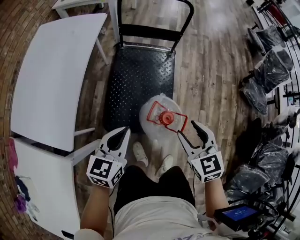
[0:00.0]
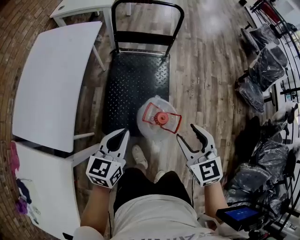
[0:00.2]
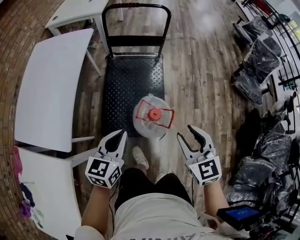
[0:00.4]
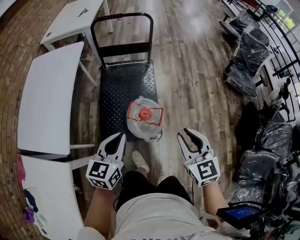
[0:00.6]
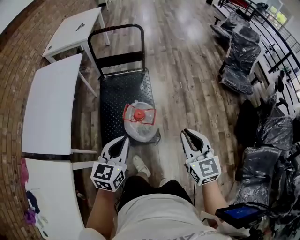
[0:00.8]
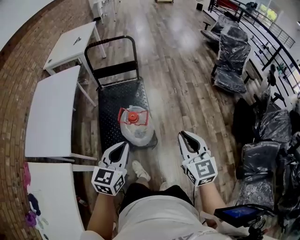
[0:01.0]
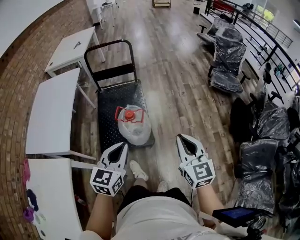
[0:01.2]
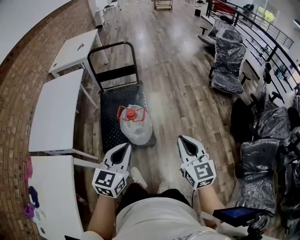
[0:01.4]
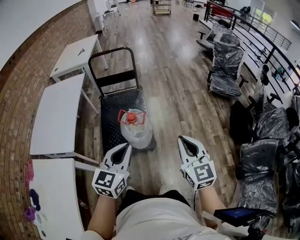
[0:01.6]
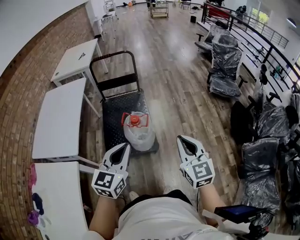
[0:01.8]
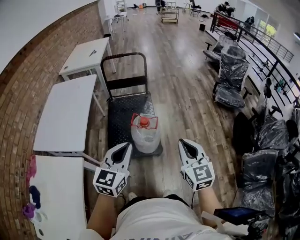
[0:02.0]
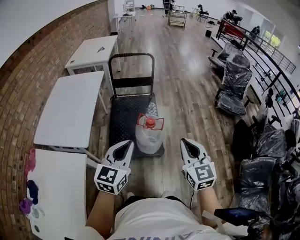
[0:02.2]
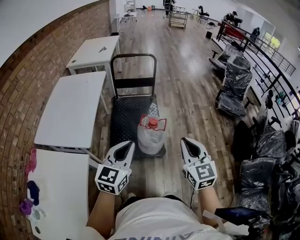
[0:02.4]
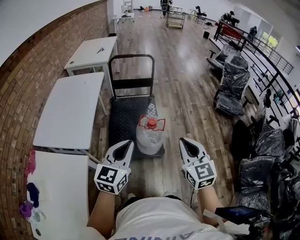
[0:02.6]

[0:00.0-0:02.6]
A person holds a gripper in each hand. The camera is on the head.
0.0 to 1.2 s: The two grippers go about 30 cm backward, to the right and upward. The right gripper swivels roughly 30 degrees, and closes its fingers.
1.2 to 2.6 s: The right gripper travels to the left by roughly 15 cm. The left gripper heads to the left and upward, covering roughly 15 cm.

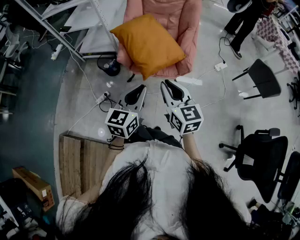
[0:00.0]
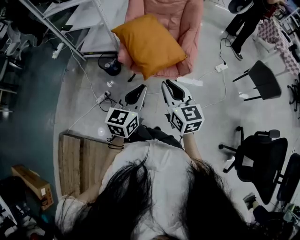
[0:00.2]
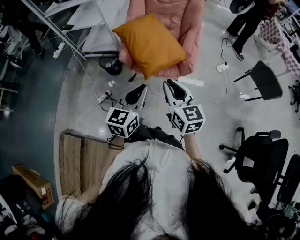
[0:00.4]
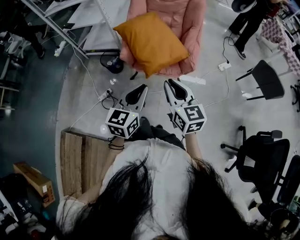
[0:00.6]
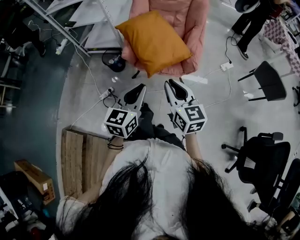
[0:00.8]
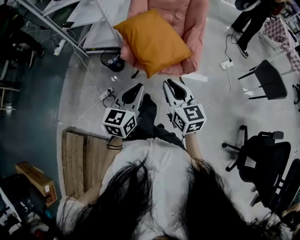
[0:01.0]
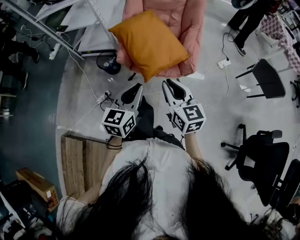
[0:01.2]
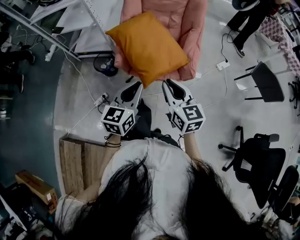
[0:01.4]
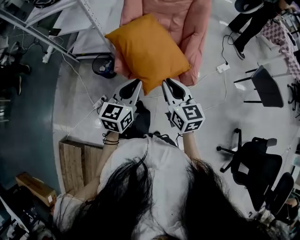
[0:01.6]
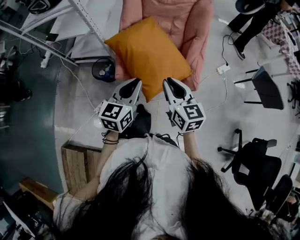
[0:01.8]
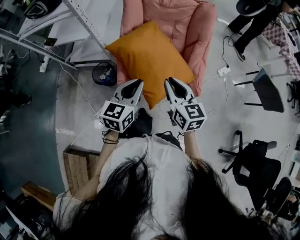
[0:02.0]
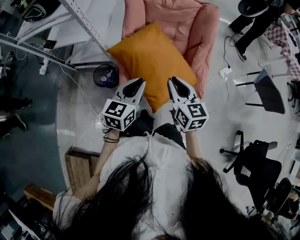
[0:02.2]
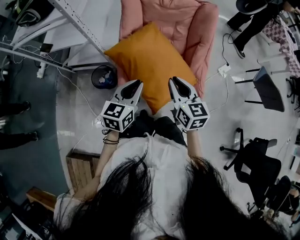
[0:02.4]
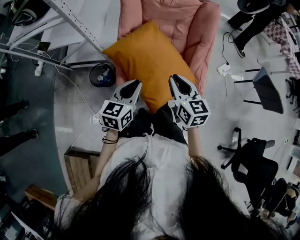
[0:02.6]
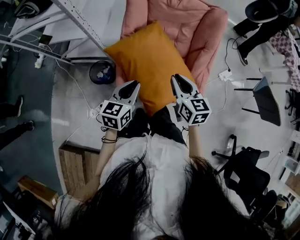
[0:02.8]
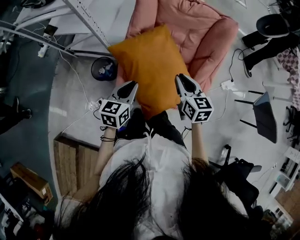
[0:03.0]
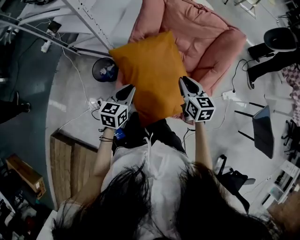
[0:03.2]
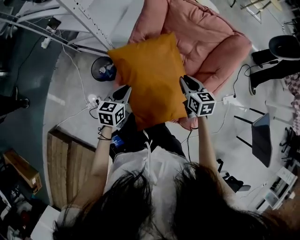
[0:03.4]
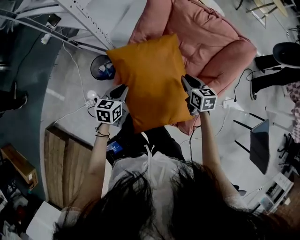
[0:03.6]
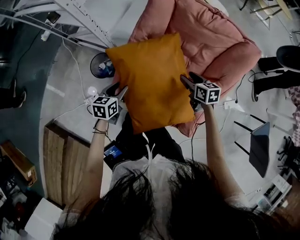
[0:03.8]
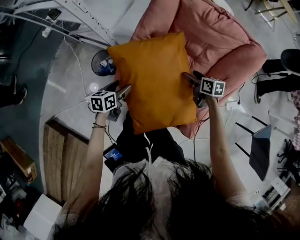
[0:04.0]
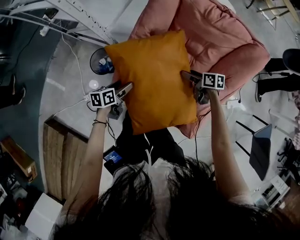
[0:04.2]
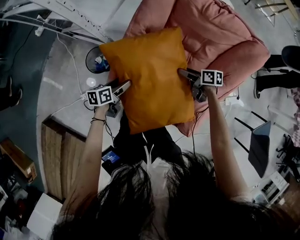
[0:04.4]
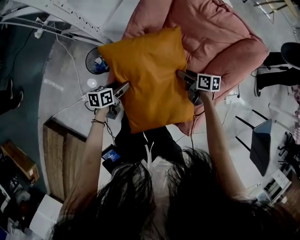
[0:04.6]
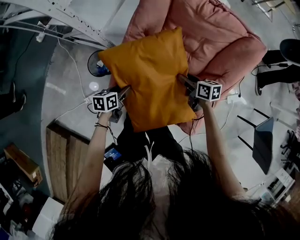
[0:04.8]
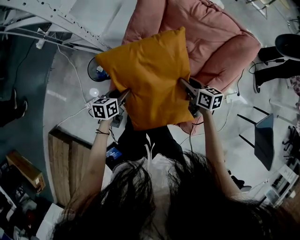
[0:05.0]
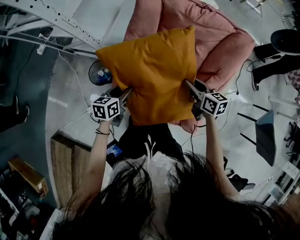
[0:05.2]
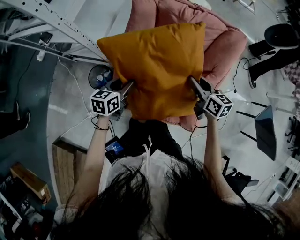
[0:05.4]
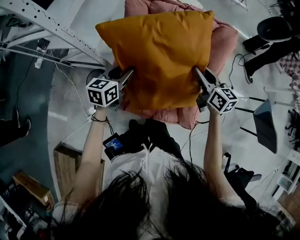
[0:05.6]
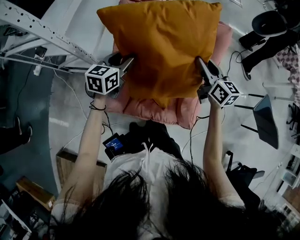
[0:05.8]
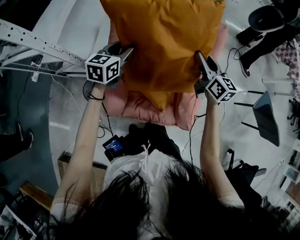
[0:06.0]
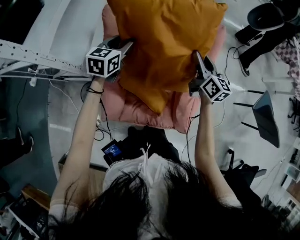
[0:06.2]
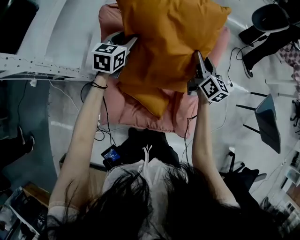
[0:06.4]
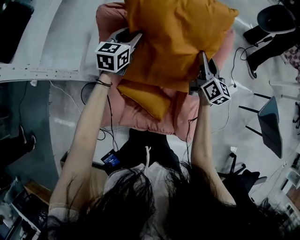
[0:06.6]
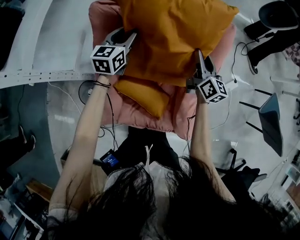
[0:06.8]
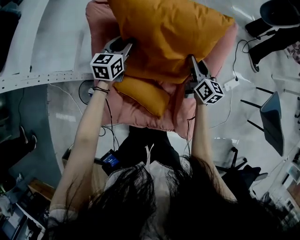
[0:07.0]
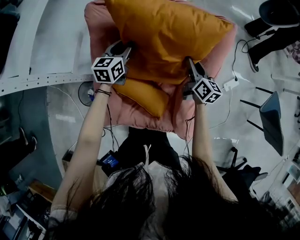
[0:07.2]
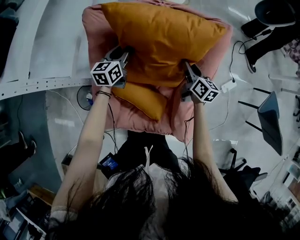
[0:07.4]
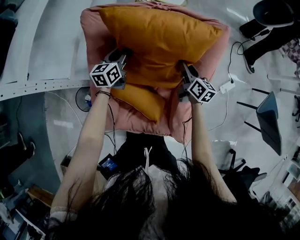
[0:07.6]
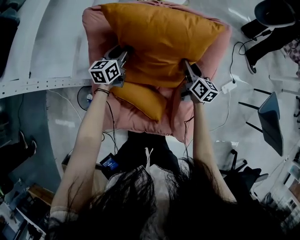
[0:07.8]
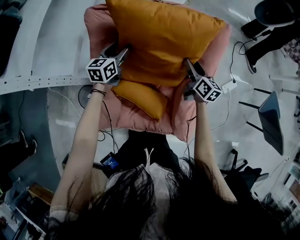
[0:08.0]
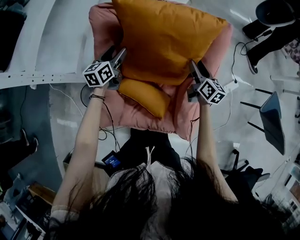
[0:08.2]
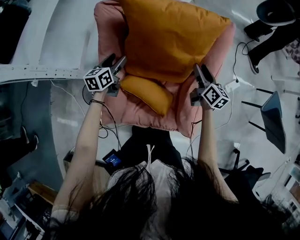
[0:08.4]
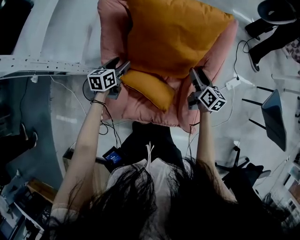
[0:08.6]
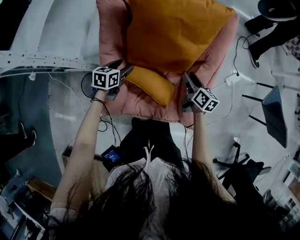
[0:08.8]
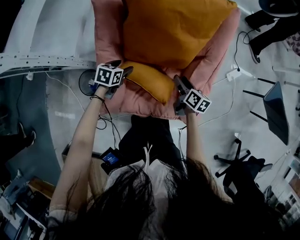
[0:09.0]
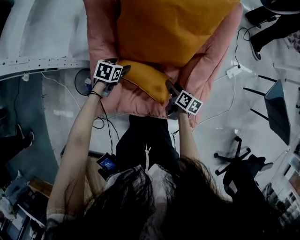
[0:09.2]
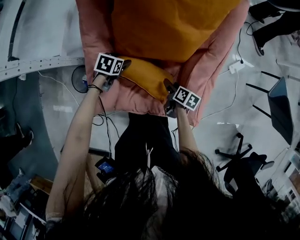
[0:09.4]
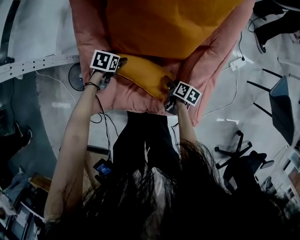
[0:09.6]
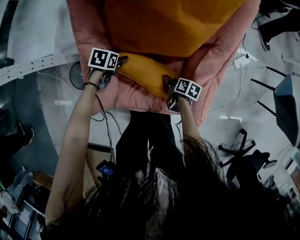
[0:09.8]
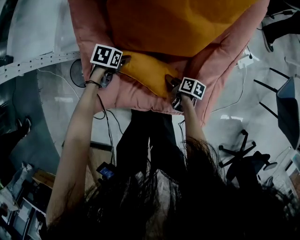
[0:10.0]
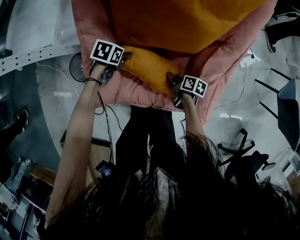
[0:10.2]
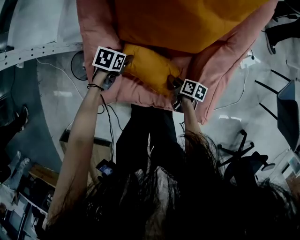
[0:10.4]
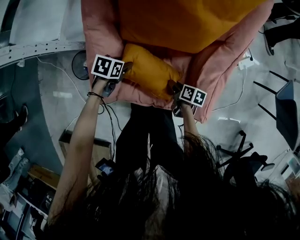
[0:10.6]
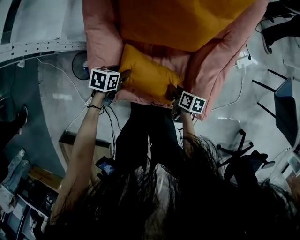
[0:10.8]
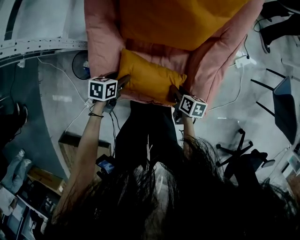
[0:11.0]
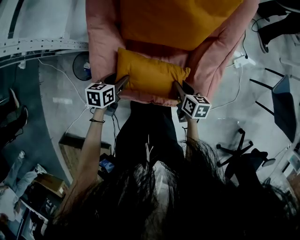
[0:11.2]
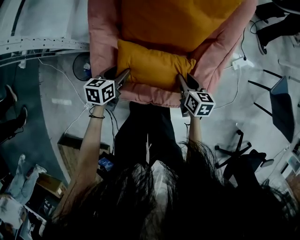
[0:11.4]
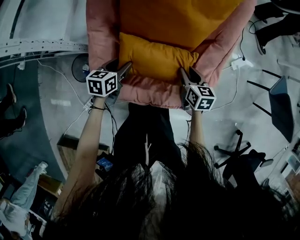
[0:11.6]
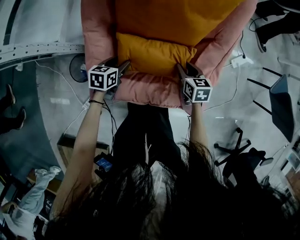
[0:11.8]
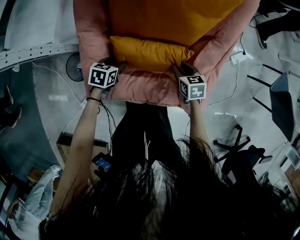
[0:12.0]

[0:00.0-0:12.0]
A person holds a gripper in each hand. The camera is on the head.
0.0 to 1.6 s: Both grippers move forward, about 15 cm.
1.6 to 3.0 s: The right gripper shifts roughly 25 cm forward, while the left gripper travels forward and downward by about 20 cm.
3.0 to 4.4 s: The right gripper goes some 30 cm downward and forward, changes its angle by some 50 degrees, and opens up. Meanwhile the left gripper heads downward, covering about 25 cm, rotates about 40 degrees, and opens its fingers.
4.4 to 6.0 s: The two grippers go approximately 30 cm upward. The left gripper rotates around the line of its fingers by approximately 50 degrees, clockwise from behind, and closes its fingers. Meanwhile the right gripper rotates some 60 degrees, and closes.
6.0 to 7.6 s: The left gripper goes approximately 20 cm downward and forward. Meanwhile the right gripper shifts approximately 20 cm downward, and turns by about 20 degrees.
7.6 to 9.0 s: Both grippers travel together backward and downward, roughly 20 cm. The right gripper opens its fingers; the left gripper tilts its fingers about 30 degrees downward, and opens its fingers.
9.0 to 10.4 s: The right gripper moves downward, approximately 20 cm, and changes its angle by some 30 degrees. Meanwhile the left gripper shifts approximately 10 cm downward.
10.4 to 12.0 s: The left gripper travels upward and back again, about 10 cm each way, while the right gripper is displaced upward and forward by about 10 cm, and twists roughly 50 degrees counterclockwise, seen from behind.

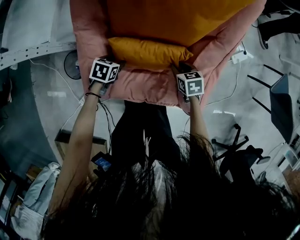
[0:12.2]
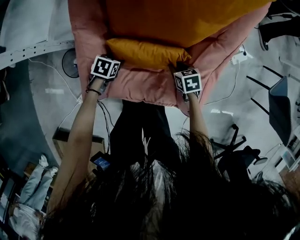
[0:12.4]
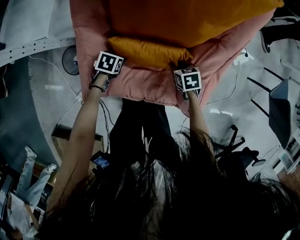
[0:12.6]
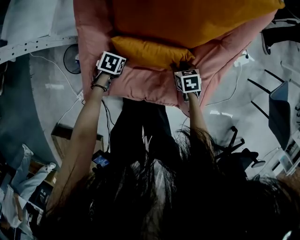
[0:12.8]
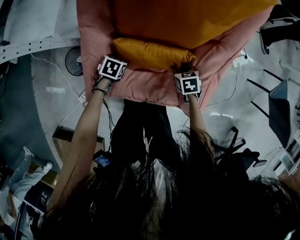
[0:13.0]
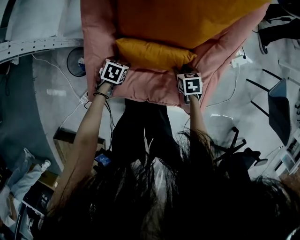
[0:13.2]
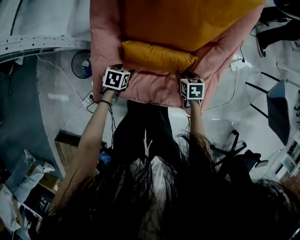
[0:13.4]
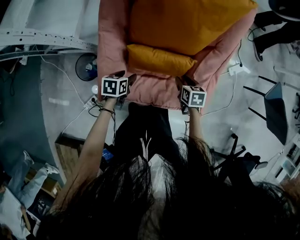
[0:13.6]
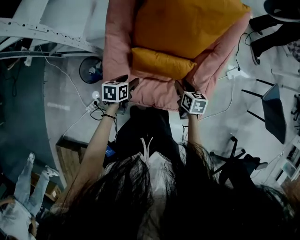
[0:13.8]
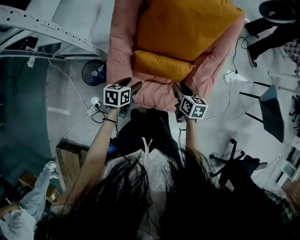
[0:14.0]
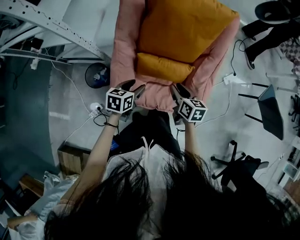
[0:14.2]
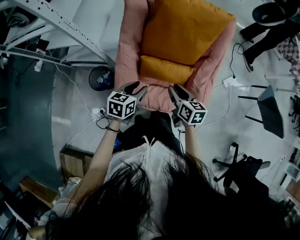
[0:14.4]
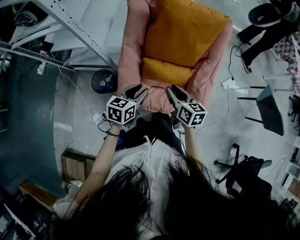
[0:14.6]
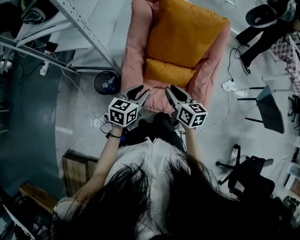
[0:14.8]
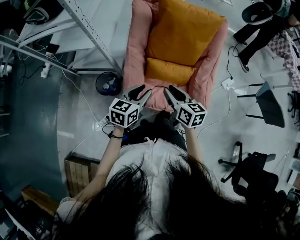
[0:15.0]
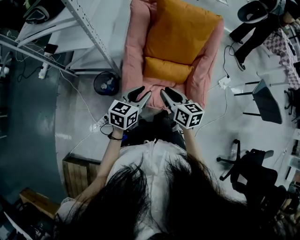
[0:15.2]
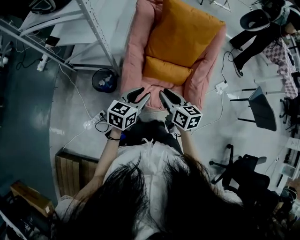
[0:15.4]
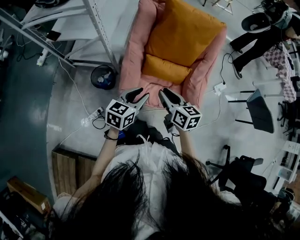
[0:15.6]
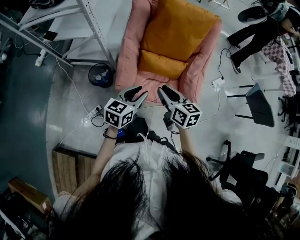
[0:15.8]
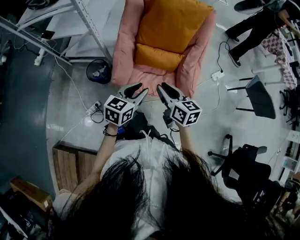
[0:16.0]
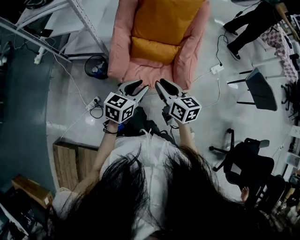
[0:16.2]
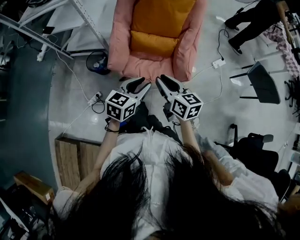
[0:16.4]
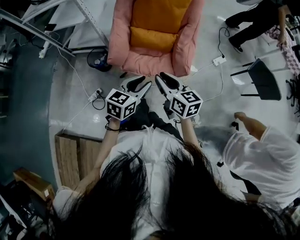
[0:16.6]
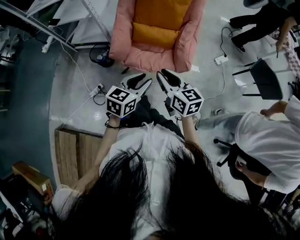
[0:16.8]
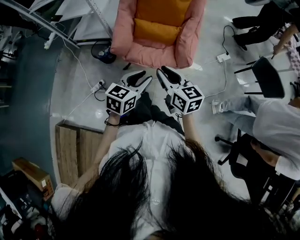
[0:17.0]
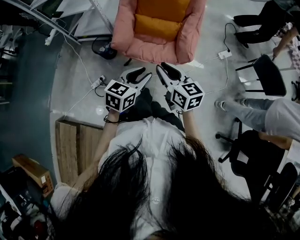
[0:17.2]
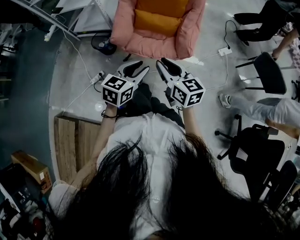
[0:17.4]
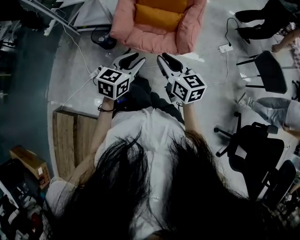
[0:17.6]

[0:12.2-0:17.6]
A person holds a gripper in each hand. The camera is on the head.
12.2 to 13.6 s: The grippers both shift upward by some 5 cm.
13.6 to 15.0 s: The left gripper travels upward by approximately 30 cm, angles its fingers upward, by about 30 degrees, and closes up. The right gripper is displaced upward, to the left and backward by about 35 cm, and tips its fingers upward by approximately 30 degrees.
15.0 to 16.2 s: The two grippers go roughly 15 cm backward and to the right.
16.2 to 17.6 s: The two grippers go approximately 15 cm backward.

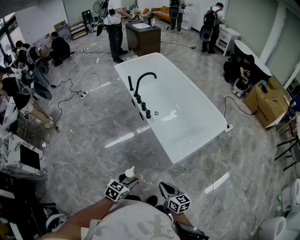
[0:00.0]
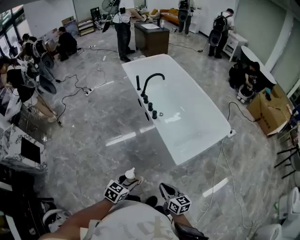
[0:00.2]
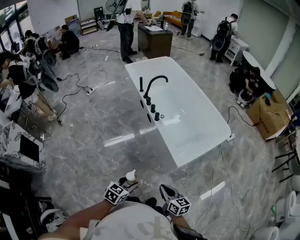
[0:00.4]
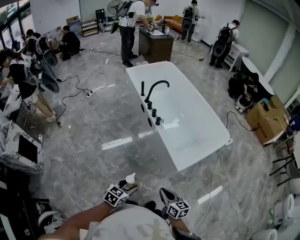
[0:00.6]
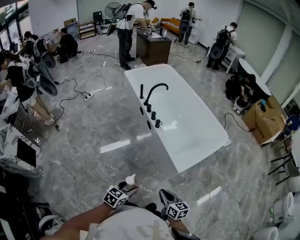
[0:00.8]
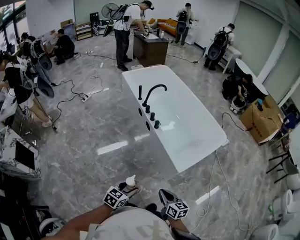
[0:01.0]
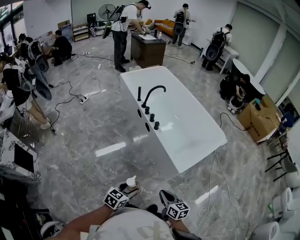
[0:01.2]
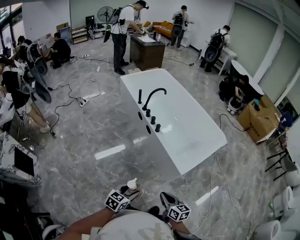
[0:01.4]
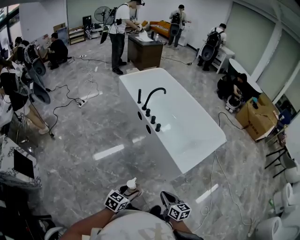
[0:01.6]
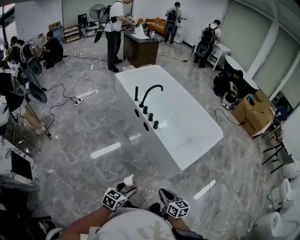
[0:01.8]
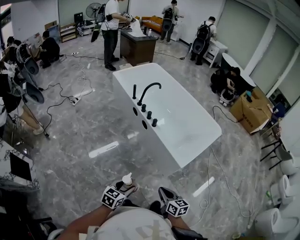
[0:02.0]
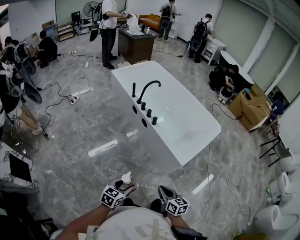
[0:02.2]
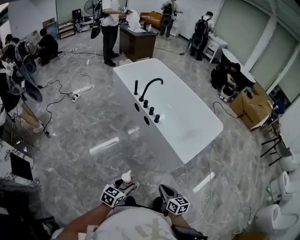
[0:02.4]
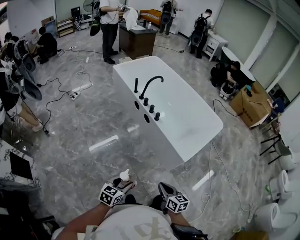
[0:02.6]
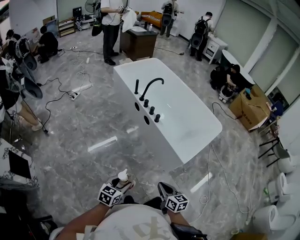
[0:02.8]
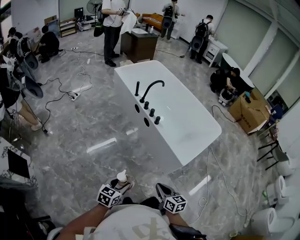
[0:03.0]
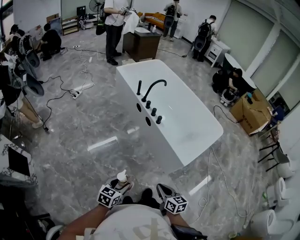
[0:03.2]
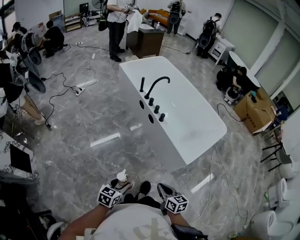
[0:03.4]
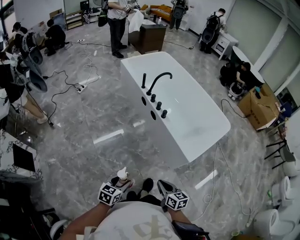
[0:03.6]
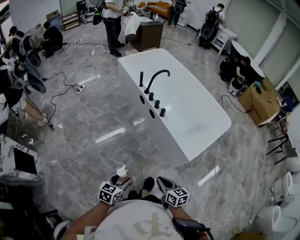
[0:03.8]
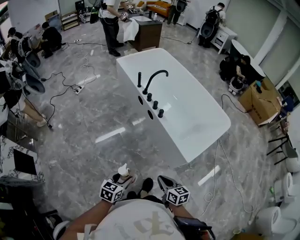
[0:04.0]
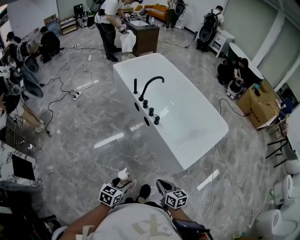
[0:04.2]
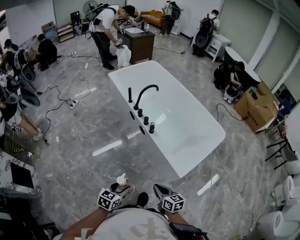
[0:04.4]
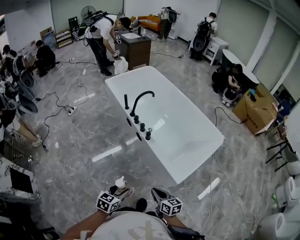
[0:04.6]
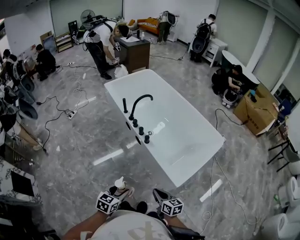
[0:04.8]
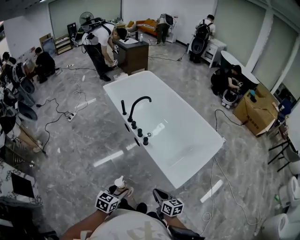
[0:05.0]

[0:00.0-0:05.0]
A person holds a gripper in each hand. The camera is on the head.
0.0 to 1.6 s: Both grippers travel together to the left, roughly 15 cm.
1.6 to 3.4 s: Both grippers travel together to the left, approximately 10 cm.
3.4 to 5.0 s: The grippers both shift forward and to the right by some 20 cm.
